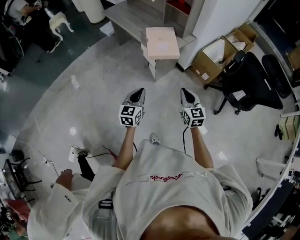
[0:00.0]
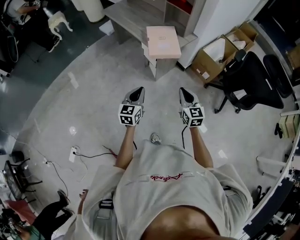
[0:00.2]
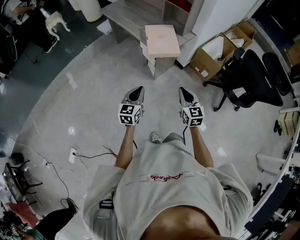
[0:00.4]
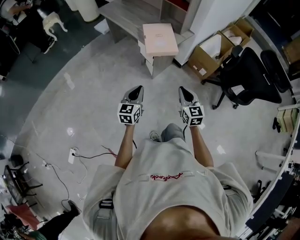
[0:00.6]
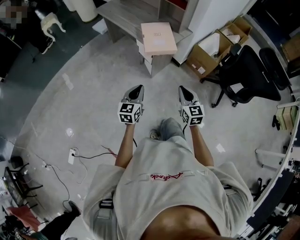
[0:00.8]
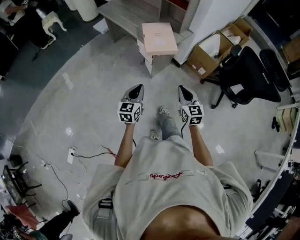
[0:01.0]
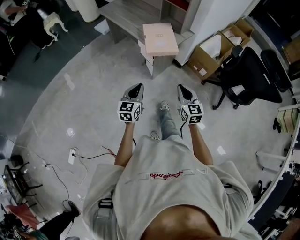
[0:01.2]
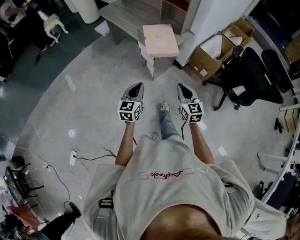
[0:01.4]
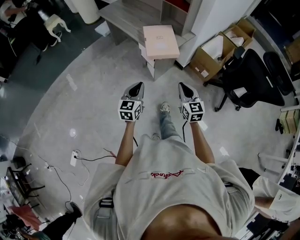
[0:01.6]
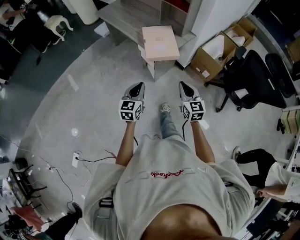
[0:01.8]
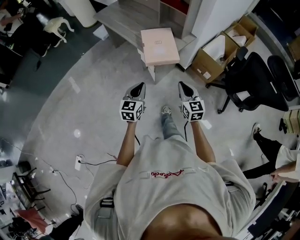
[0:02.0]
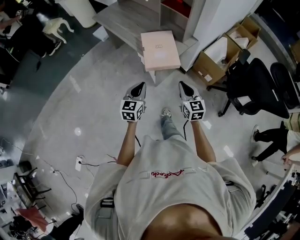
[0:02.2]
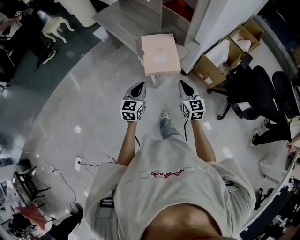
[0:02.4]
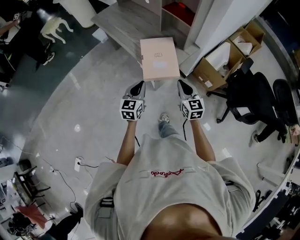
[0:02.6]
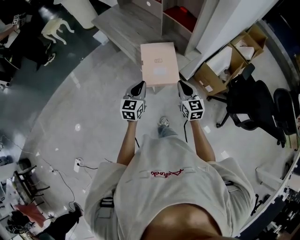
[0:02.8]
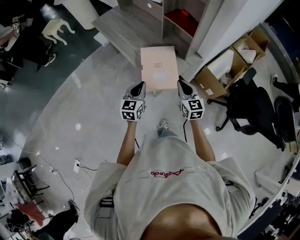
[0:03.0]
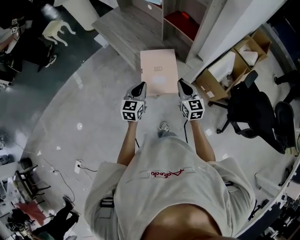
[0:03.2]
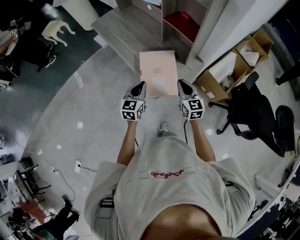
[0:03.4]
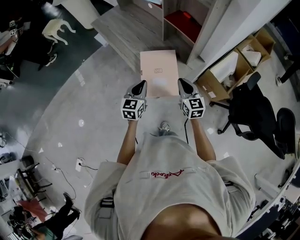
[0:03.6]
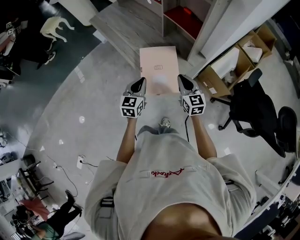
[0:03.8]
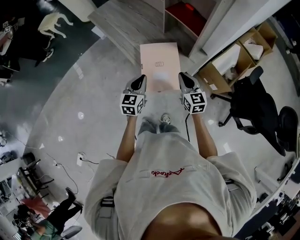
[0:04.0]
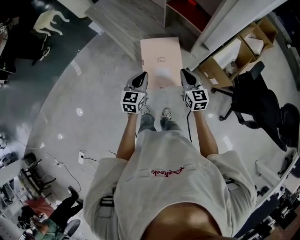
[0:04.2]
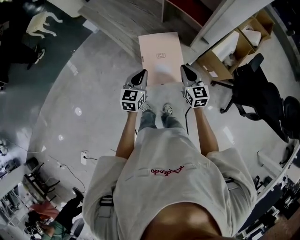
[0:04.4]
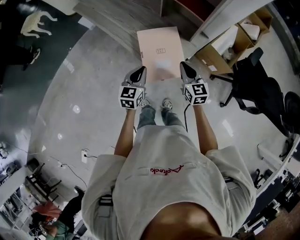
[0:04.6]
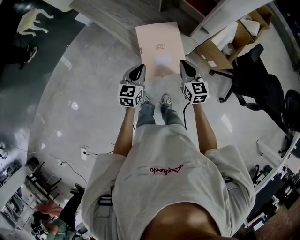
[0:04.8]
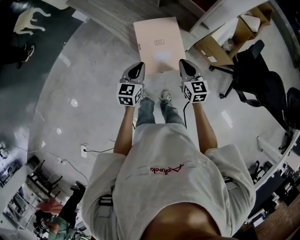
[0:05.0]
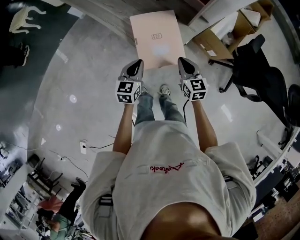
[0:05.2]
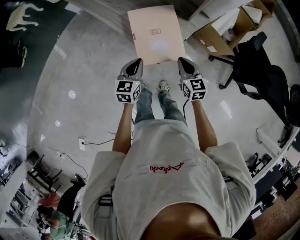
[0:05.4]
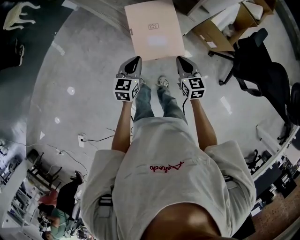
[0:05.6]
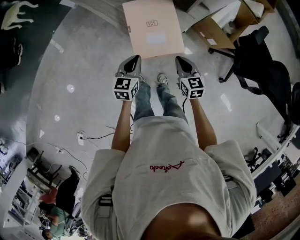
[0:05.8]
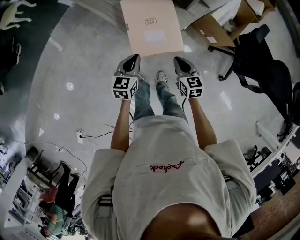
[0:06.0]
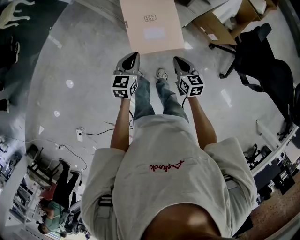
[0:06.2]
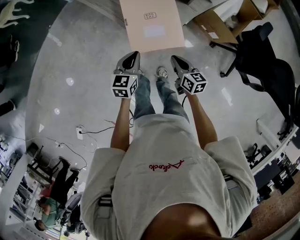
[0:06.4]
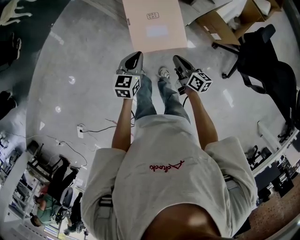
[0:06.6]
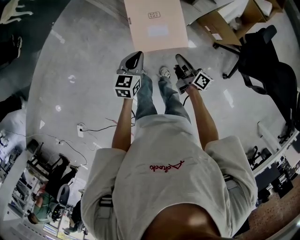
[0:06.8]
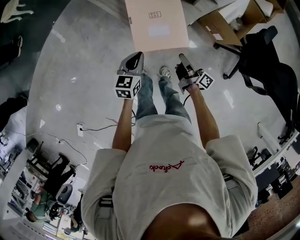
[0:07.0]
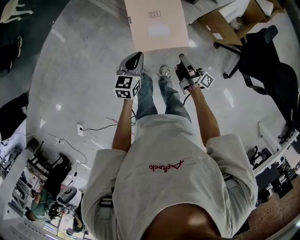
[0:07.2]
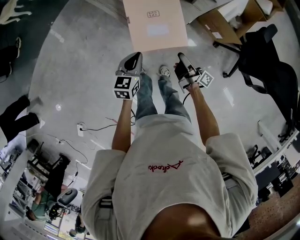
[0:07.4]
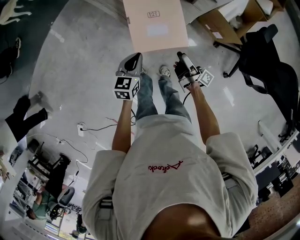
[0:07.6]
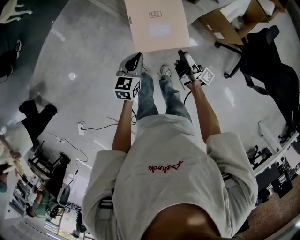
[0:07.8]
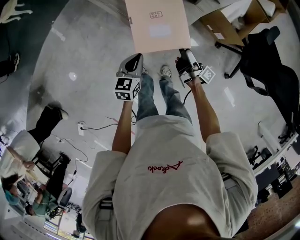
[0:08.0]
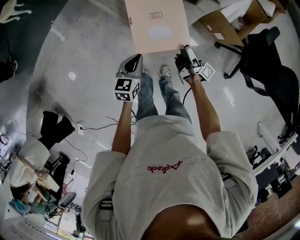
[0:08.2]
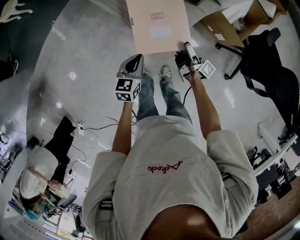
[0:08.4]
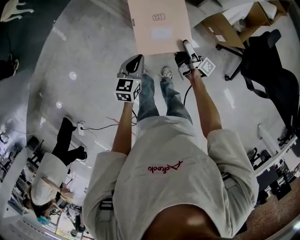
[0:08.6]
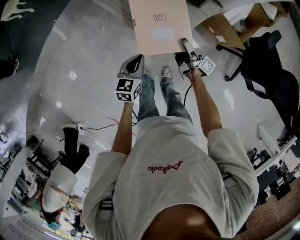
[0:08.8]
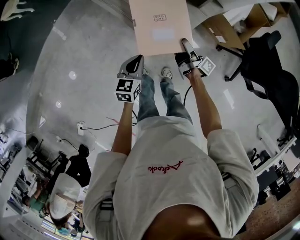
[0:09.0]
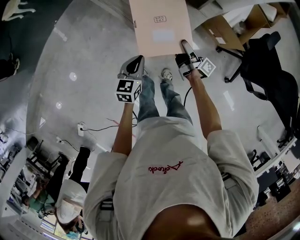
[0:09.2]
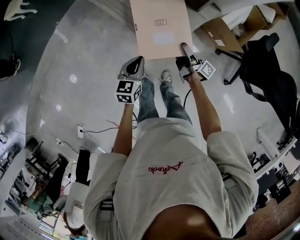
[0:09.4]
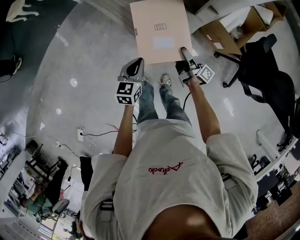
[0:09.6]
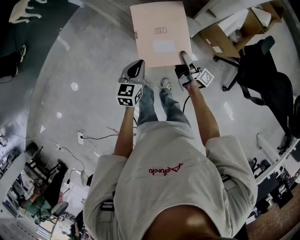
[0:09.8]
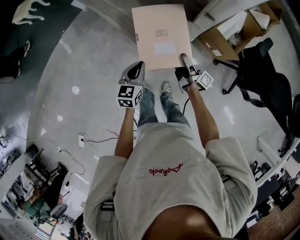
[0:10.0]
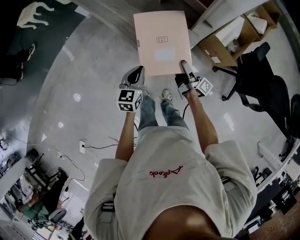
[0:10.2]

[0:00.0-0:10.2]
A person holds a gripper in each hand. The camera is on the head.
0:00.0 to 0:01.4: There are only small adjustments of the grippers.
0:01.4 to 0:03.0: The two grippers go approximately 30 cm forward.
0:03.0 to 0:04.4: The two grippers go about 5 cm forward.
0:04.4 to 0:05.8: The left gripper moves downward, some 10 cm; the right gripper is displaced downward and backward by approximately 15 cm.
0:05.8 to 0:07.2: The right gripper changes place by roughly 5 cm, and twists roughly 70 degrees clockwise, seen from behind.
0:07.2 to 0:08.8: The right gripper heads forward, covering approximately 10 cm, and opens.
0:08.8 to 0:10.2: Both grippers travel together upward, some 10 cm.

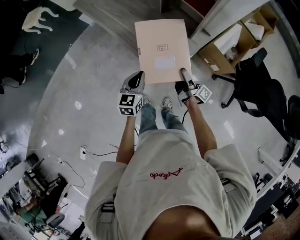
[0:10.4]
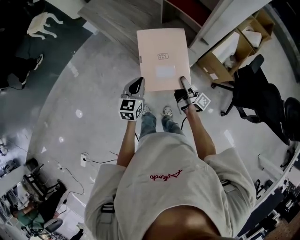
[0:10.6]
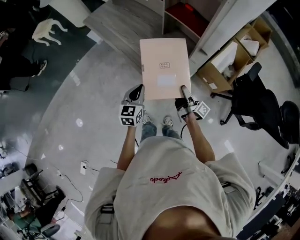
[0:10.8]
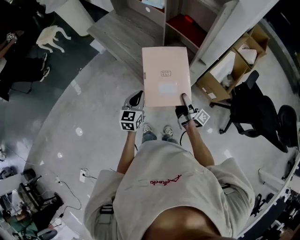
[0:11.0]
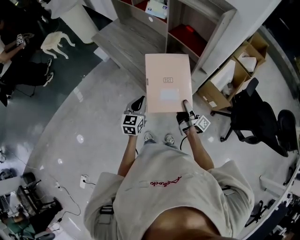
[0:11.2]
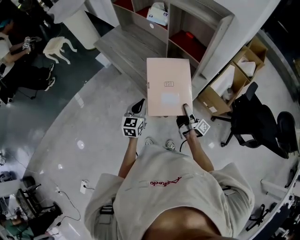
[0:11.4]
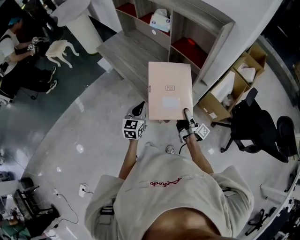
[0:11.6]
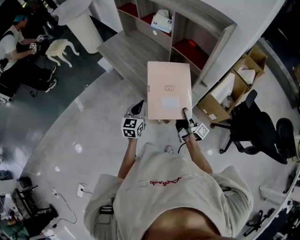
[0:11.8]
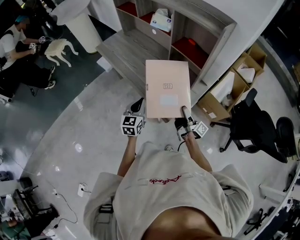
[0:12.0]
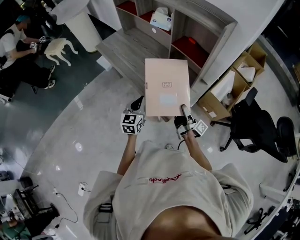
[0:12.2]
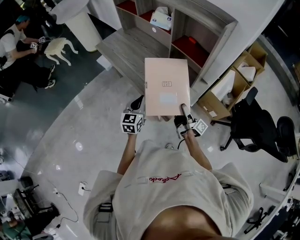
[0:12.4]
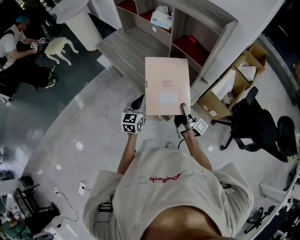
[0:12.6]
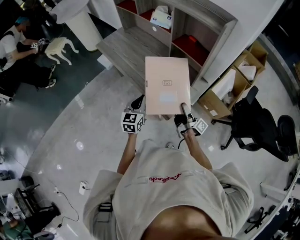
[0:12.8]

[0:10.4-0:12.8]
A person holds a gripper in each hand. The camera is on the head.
0:10.4 to 0:11.6: Both grippers travel together upward, roughly 10 cm.
0:11.6 to 0:12.8: The grippers stay close to where they were, moving slightly.

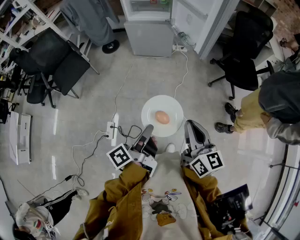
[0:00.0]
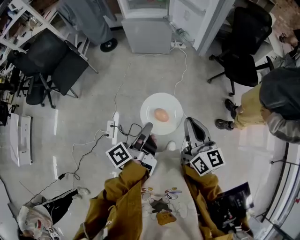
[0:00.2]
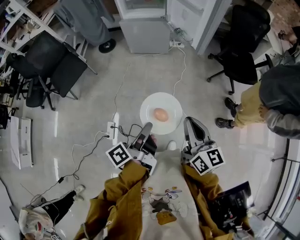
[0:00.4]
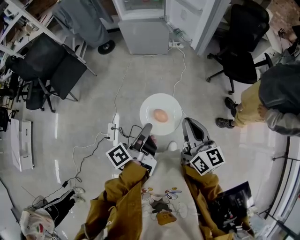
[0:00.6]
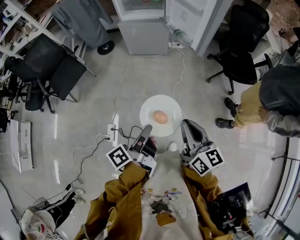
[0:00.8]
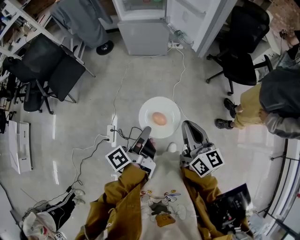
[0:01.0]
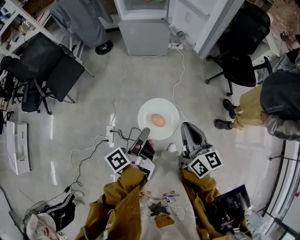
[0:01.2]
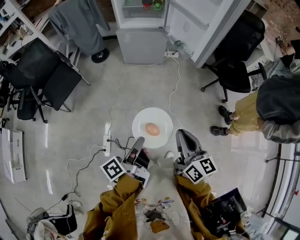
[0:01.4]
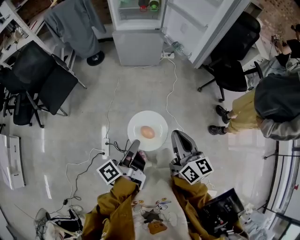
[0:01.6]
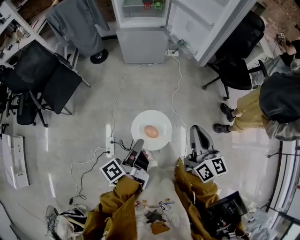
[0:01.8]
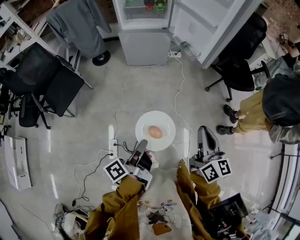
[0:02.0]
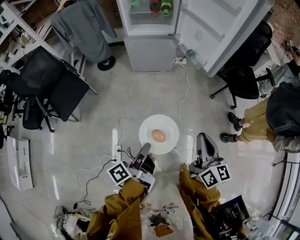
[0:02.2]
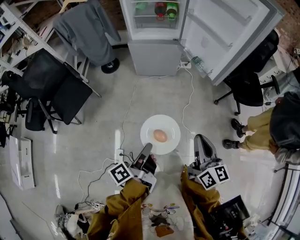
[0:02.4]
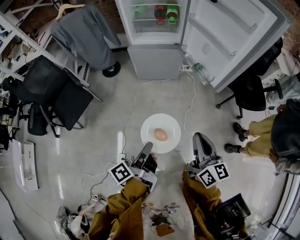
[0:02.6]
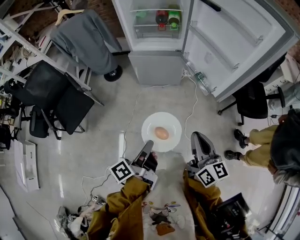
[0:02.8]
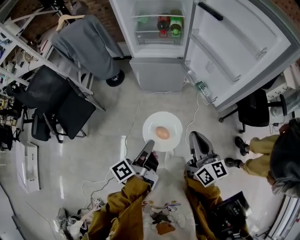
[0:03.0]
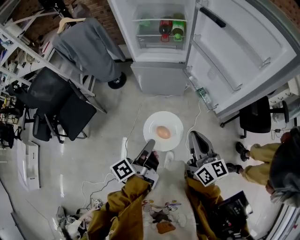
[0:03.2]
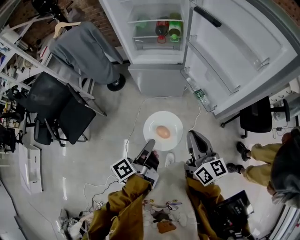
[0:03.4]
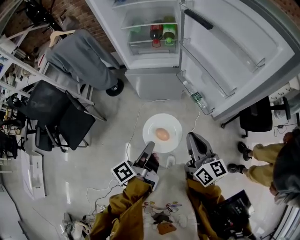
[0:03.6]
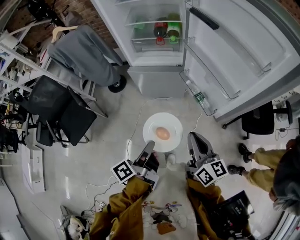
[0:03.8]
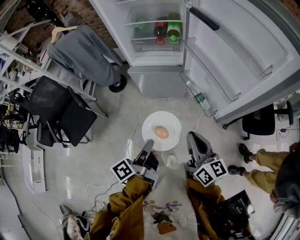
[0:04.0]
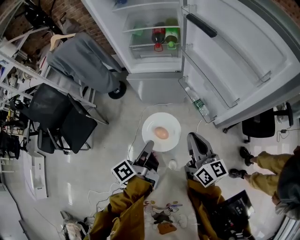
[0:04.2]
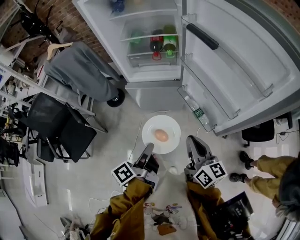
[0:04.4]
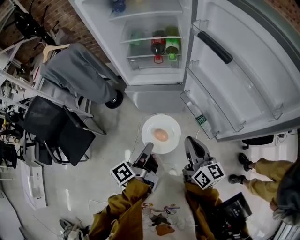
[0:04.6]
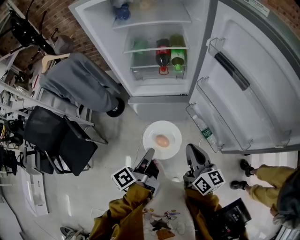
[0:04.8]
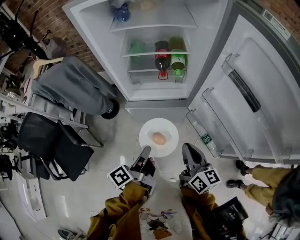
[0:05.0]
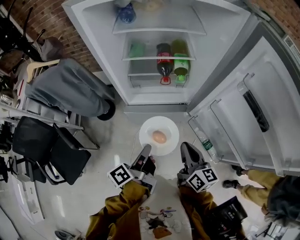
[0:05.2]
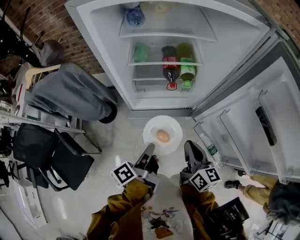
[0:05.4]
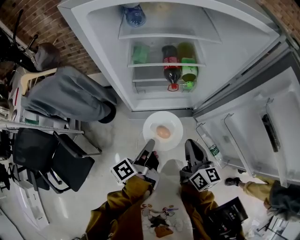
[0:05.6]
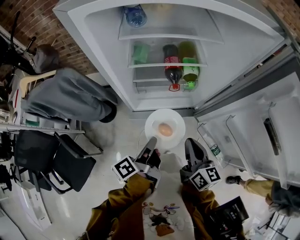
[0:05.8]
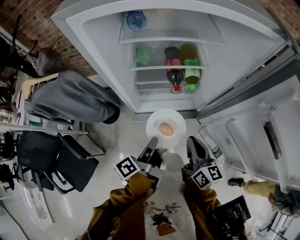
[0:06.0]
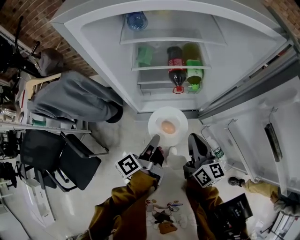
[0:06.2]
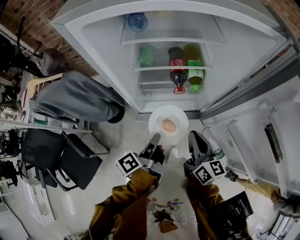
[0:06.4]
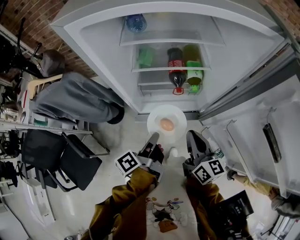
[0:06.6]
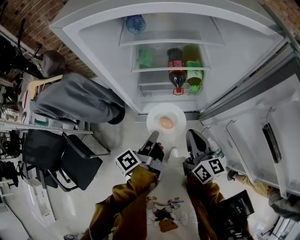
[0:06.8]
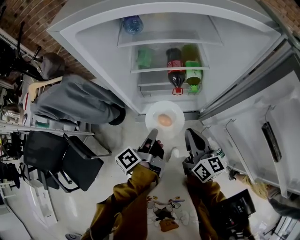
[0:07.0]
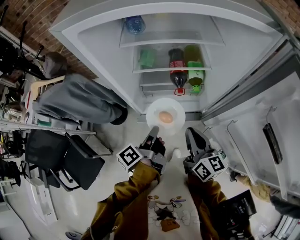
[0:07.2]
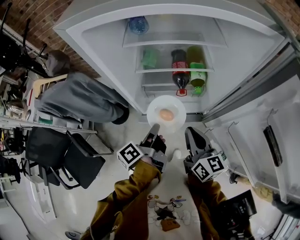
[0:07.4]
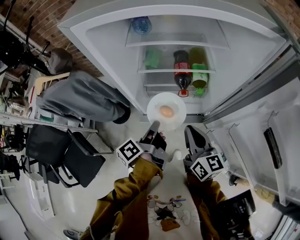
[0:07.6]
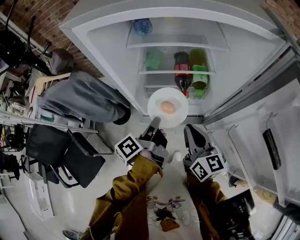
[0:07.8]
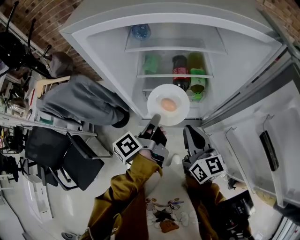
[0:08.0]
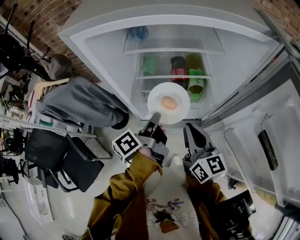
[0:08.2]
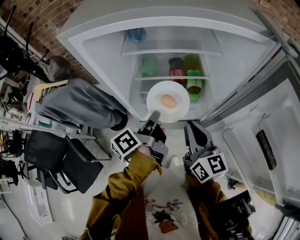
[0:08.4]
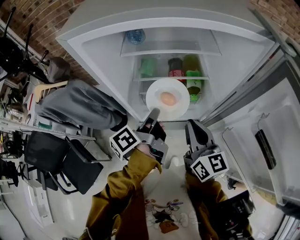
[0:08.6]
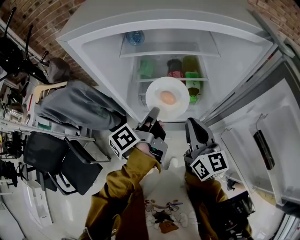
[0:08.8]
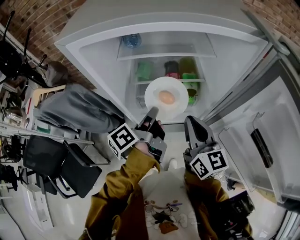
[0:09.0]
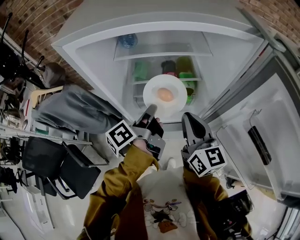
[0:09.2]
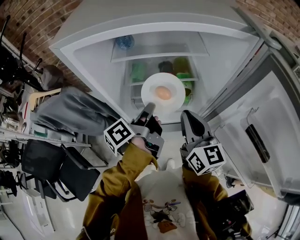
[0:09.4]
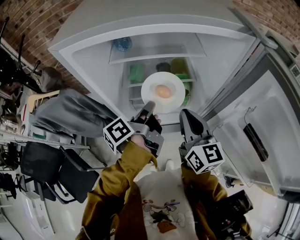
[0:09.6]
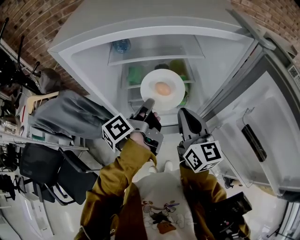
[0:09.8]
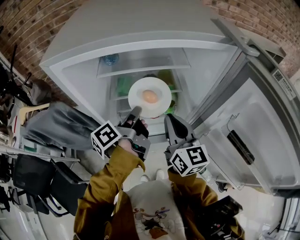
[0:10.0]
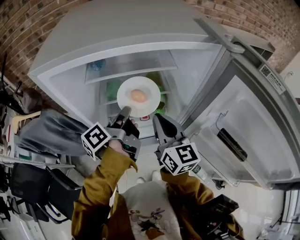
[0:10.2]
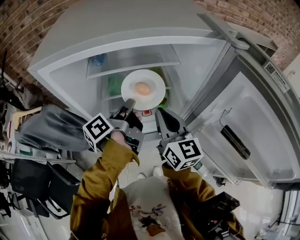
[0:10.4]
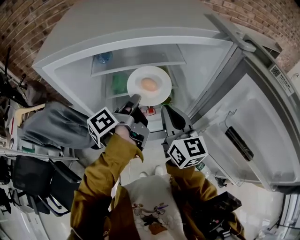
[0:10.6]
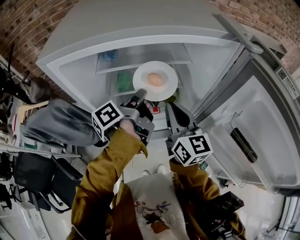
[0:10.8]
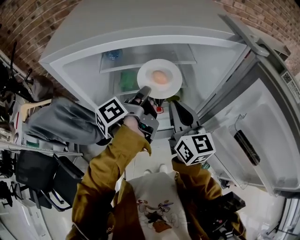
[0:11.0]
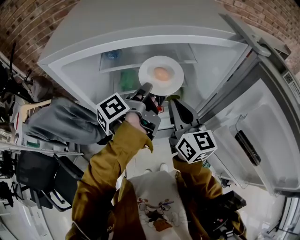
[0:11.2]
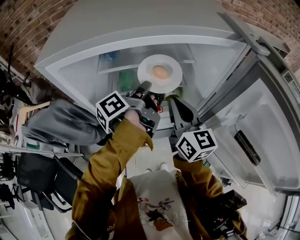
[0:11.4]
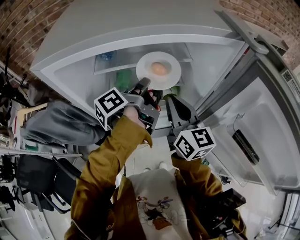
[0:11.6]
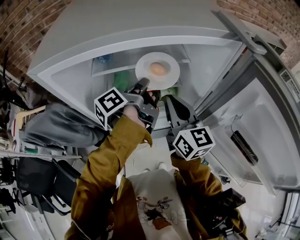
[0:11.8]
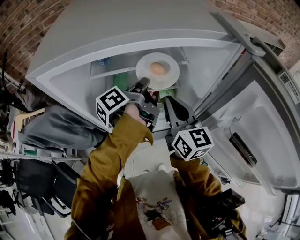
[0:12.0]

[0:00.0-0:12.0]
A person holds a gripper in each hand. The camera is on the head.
0:00.0 to 0:01.6: The right gripper changes place by roughly 15 cm.
0:01.6 to 0:03.0: The right gripper moves some 35 cm.
0:03.0 to 0:04.4: The right gripper ends up about 15 cm from where it was.
0:04.4 to 0:06.0: The right gripper changes place by approximately 35 cm.
0:06.0 to 0:07.6: The right gripper moves about 5 cm.
0:07.6 to 0:09.0: The right gripper goes roughly 10 cm upward.
0:09.0 to 0:10.4: The right gripper changes place by some 5 cm.
